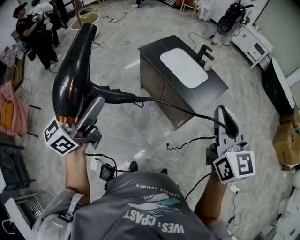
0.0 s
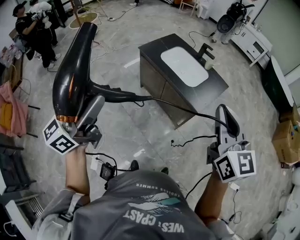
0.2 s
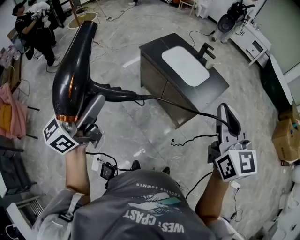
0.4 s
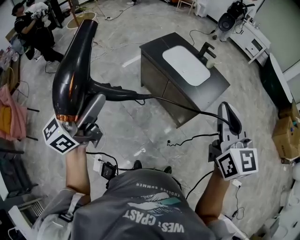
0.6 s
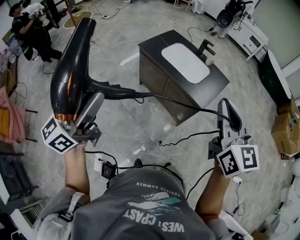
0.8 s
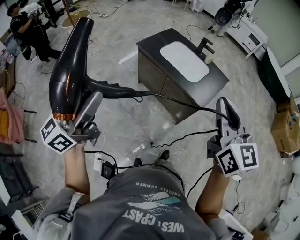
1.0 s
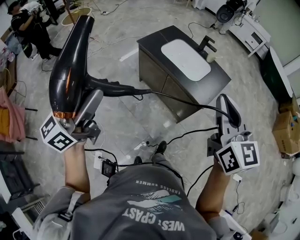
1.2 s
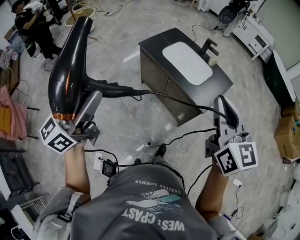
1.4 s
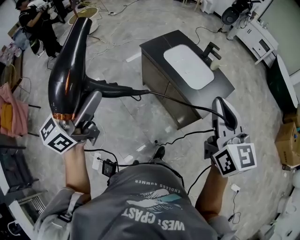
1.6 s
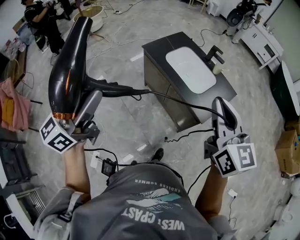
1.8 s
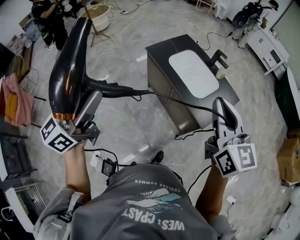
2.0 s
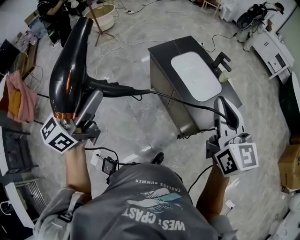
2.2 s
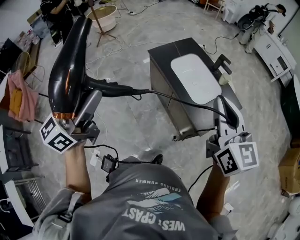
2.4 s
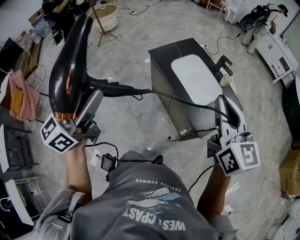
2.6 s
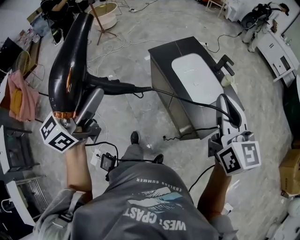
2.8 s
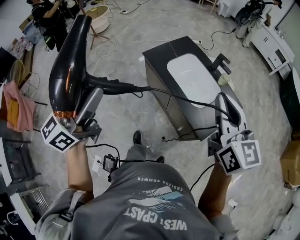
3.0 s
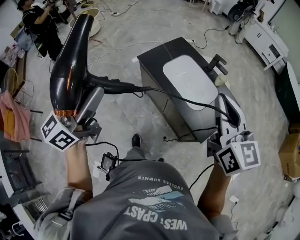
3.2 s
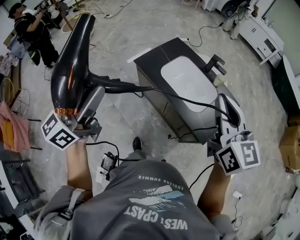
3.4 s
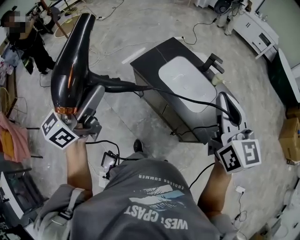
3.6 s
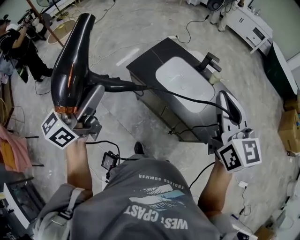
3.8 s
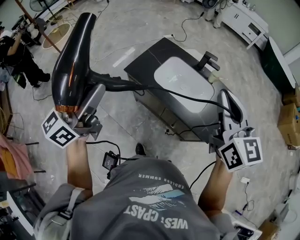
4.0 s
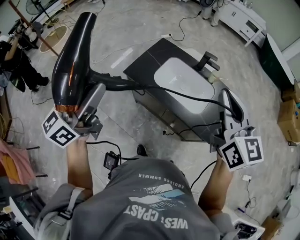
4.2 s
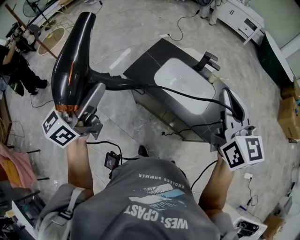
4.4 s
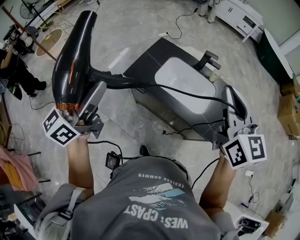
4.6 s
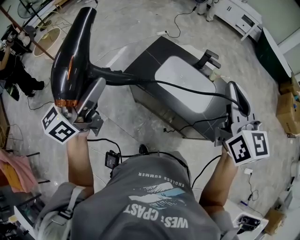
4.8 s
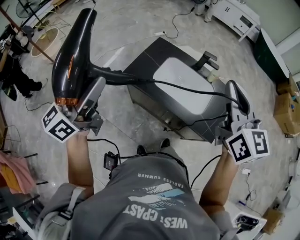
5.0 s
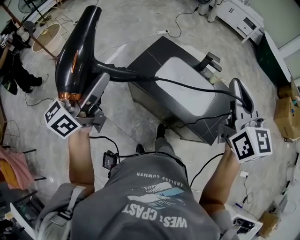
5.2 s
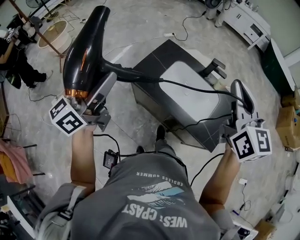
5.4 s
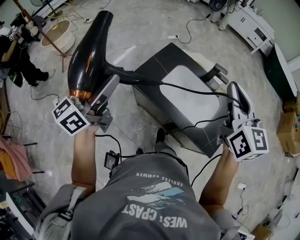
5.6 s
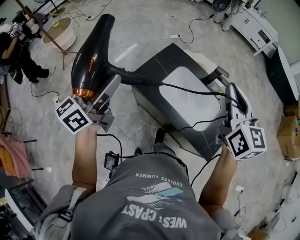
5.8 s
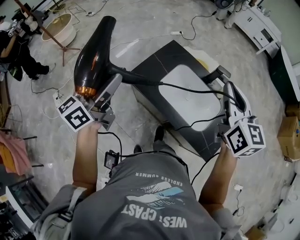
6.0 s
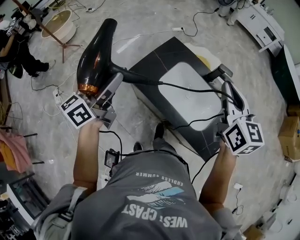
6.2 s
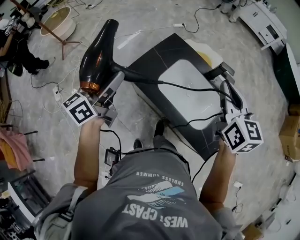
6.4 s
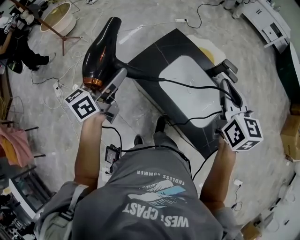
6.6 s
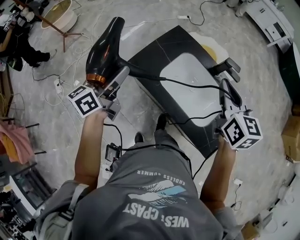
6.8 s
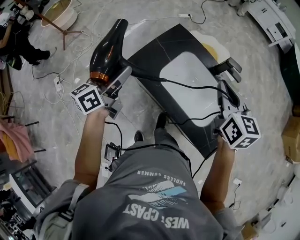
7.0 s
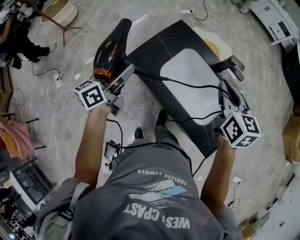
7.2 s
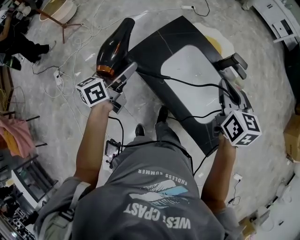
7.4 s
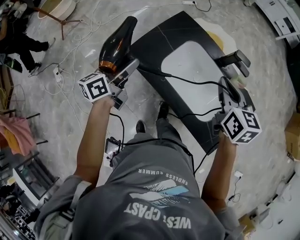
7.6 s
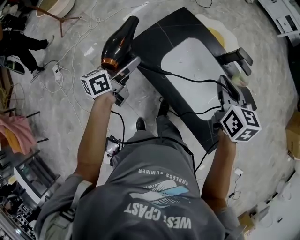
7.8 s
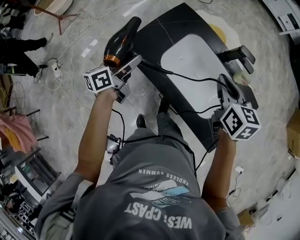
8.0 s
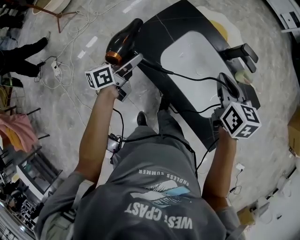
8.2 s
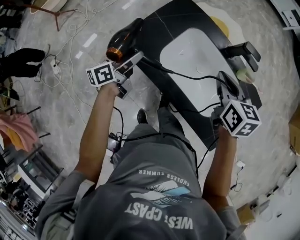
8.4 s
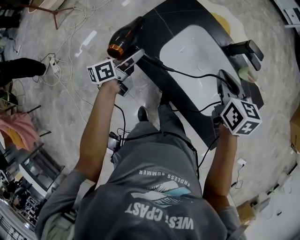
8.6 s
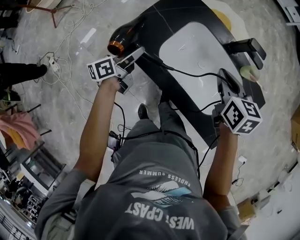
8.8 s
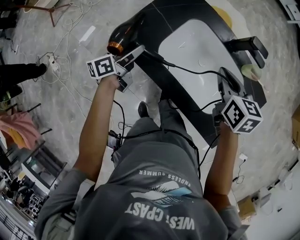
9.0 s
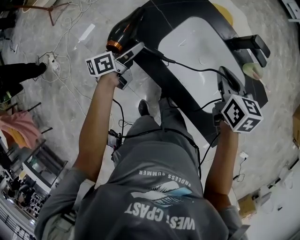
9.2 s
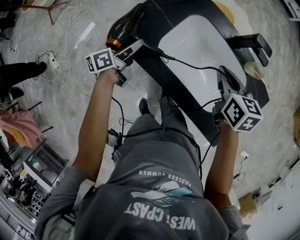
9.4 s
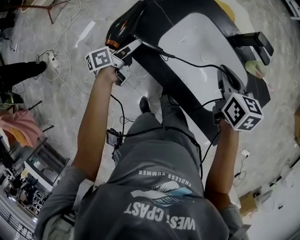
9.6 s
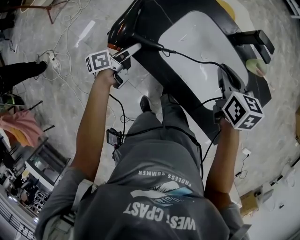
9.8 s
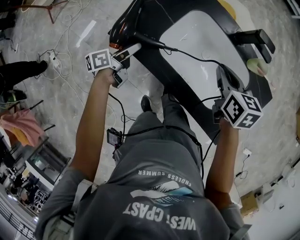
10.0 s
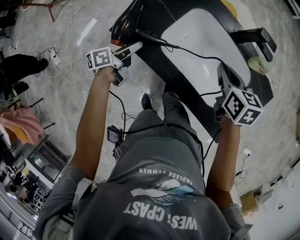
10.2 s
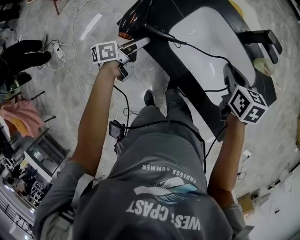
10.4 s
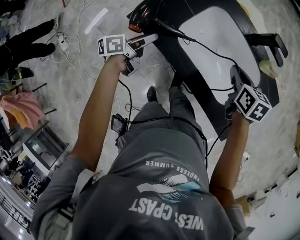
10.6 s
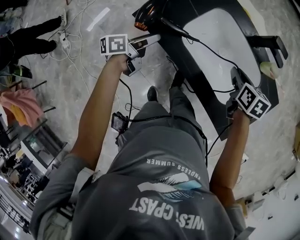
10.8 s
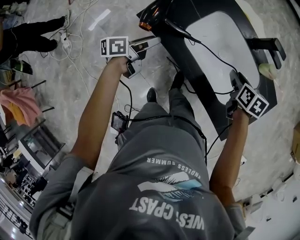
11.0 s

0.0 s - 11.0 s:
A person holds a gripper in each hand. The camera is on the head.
0.0 s - 1.6 s: Both grippers travel together forward, roughly 10 cm.
1.6 s - 3.2 s: Both grippers move forward, about 15 cm.
3.2 s - 4.8 s: The left gripper travels forward and to the left by approximately 20 cm, while the right gripper moves forward and to the left, about 10 cm, and rotates approximately 20 degrees.
4.8 s - 6.2 s: The two grippers go about 20 cm forward and downward.
6.2 s - 7.8 s: The two grippers go roughly 20 cm downward. The left gripper turns by roughly 20 degrees. The right gripper turns by about 20 degrees.
7.8 s - 9.4 s: Both grippers travel together downward, approximately 15 cm.
9.4 s - 11.0 s: The right gripper heads downward, covering some 10 cm, and opens. The left gripper heads backward, covering approximately 10 cm.

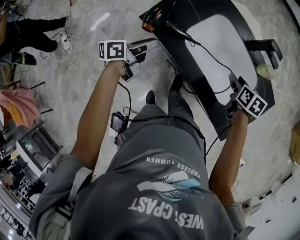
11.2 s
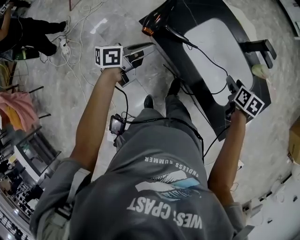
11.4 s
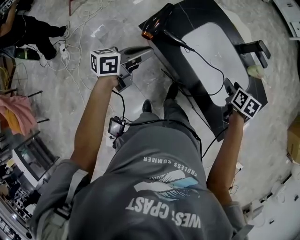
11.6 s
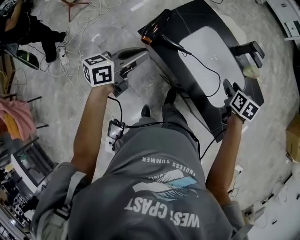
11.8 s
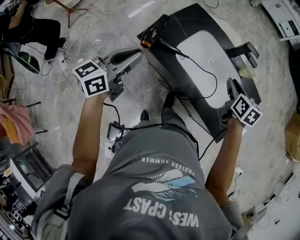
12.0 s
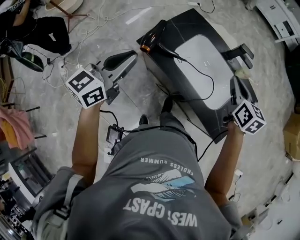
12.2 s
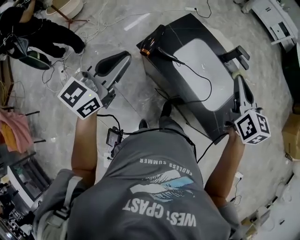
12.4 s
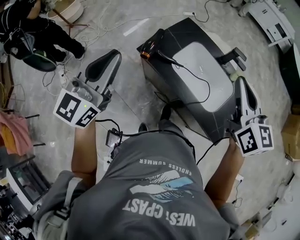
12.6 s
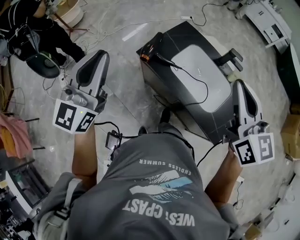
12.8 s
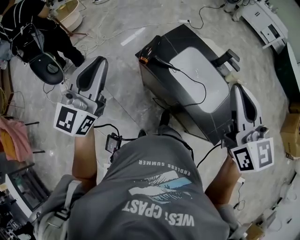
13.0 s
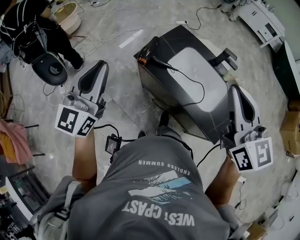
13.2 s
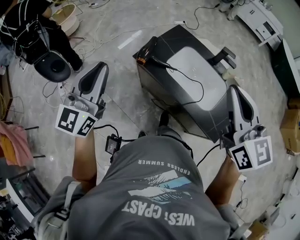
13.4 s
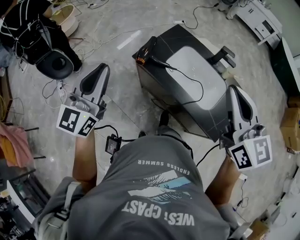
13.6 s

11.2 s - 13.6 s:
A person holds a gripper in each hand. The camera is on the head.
11.2 s - 12.4 s: The two grippers go approximately 30 cm upward. The left gripper rotates around the line of its fingers by about 50 degrees, clockwise from behind. The right gripper points its fingers about 40 degrees further upward, and closes up.
12.4 s - 13.6 s: The left gripper moves backward and upward, about 10 cm. The right gripper travels backward, upward and to the left by approximately 20 cm.

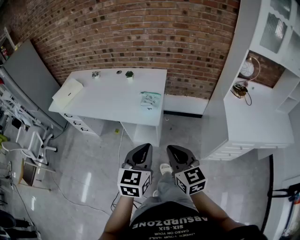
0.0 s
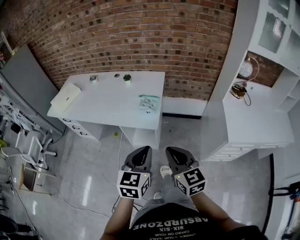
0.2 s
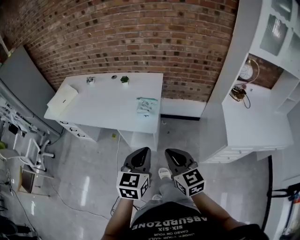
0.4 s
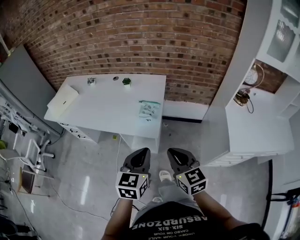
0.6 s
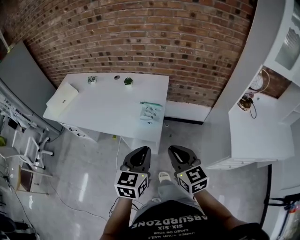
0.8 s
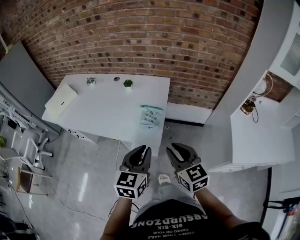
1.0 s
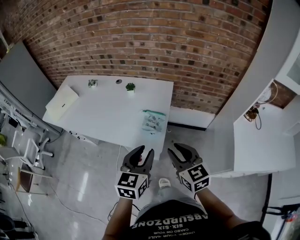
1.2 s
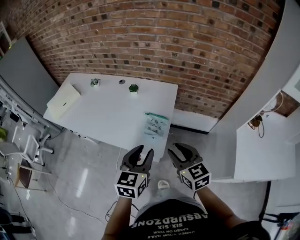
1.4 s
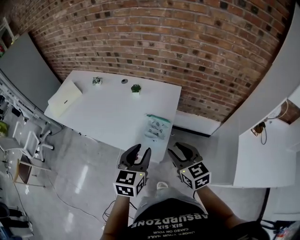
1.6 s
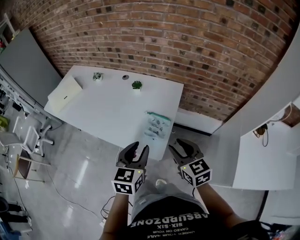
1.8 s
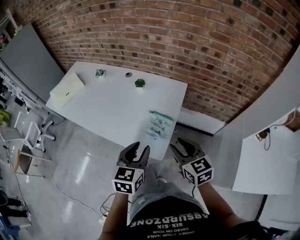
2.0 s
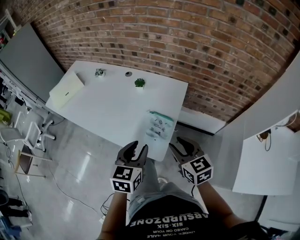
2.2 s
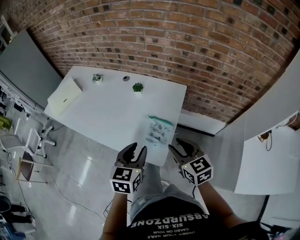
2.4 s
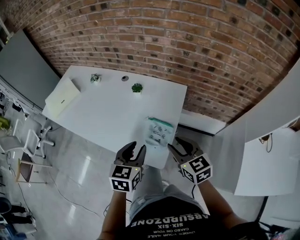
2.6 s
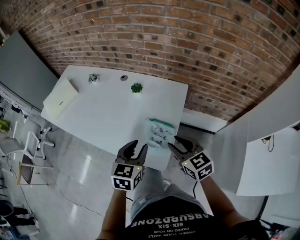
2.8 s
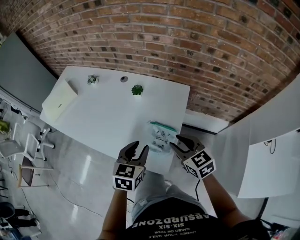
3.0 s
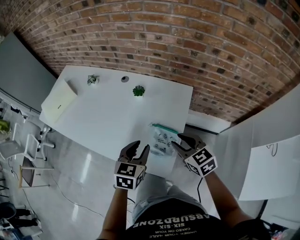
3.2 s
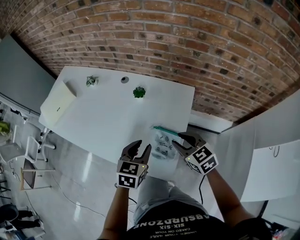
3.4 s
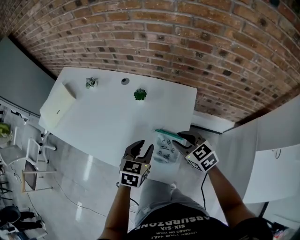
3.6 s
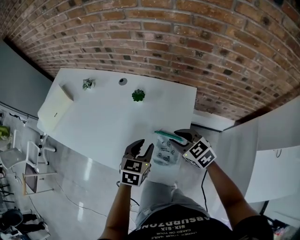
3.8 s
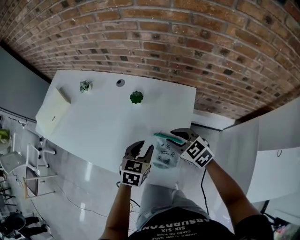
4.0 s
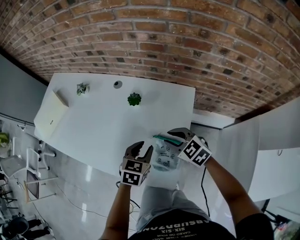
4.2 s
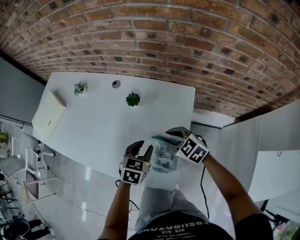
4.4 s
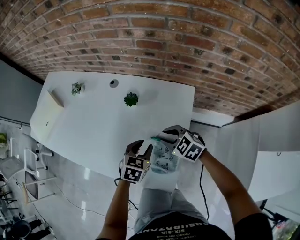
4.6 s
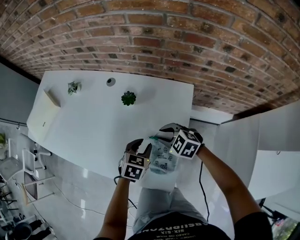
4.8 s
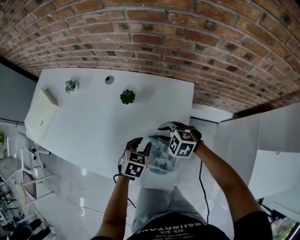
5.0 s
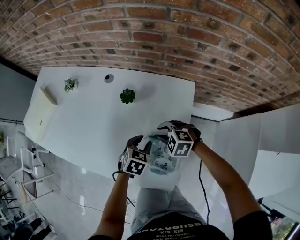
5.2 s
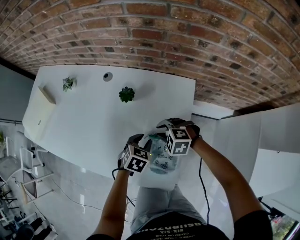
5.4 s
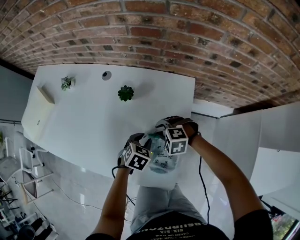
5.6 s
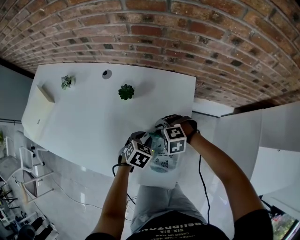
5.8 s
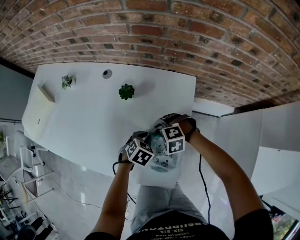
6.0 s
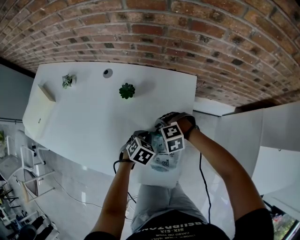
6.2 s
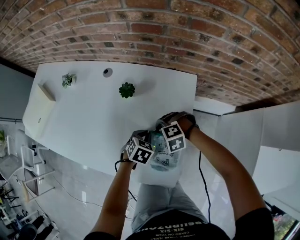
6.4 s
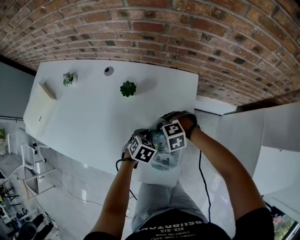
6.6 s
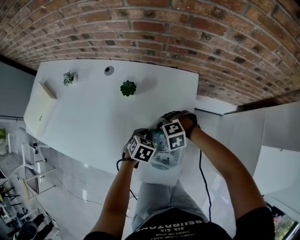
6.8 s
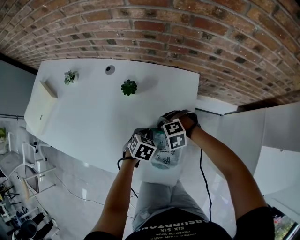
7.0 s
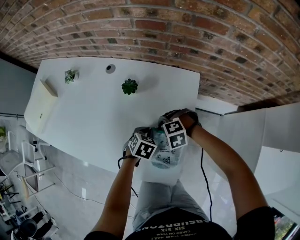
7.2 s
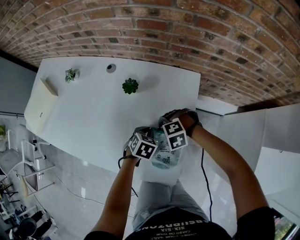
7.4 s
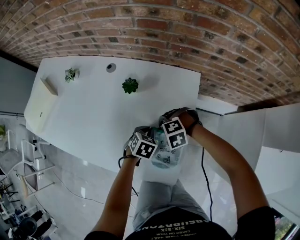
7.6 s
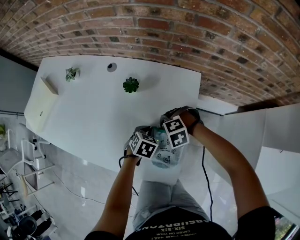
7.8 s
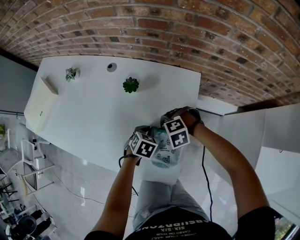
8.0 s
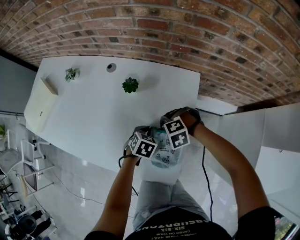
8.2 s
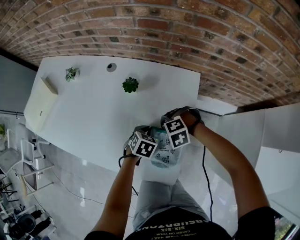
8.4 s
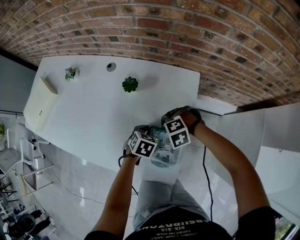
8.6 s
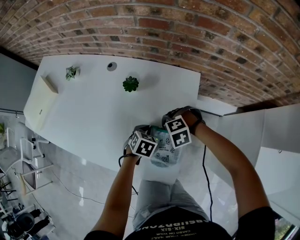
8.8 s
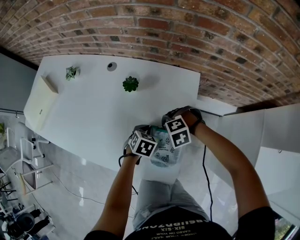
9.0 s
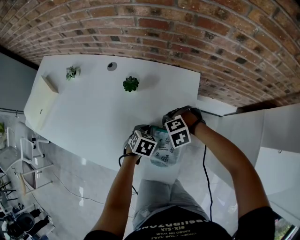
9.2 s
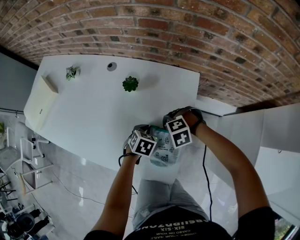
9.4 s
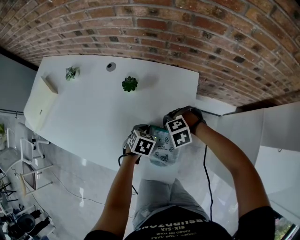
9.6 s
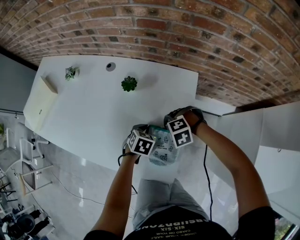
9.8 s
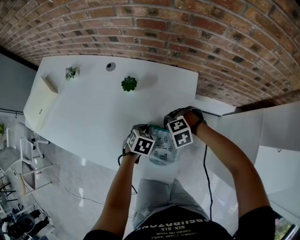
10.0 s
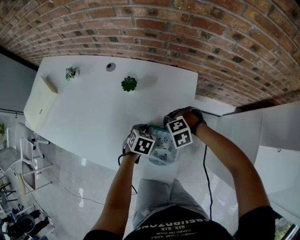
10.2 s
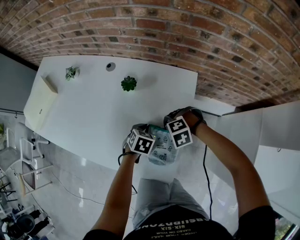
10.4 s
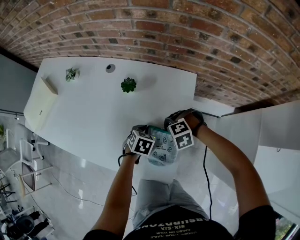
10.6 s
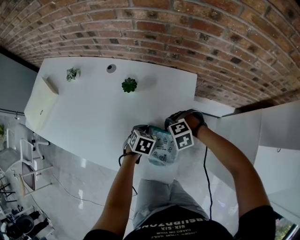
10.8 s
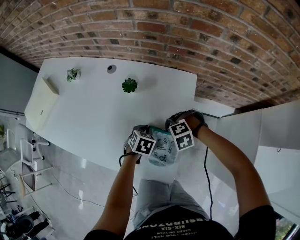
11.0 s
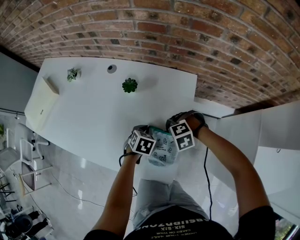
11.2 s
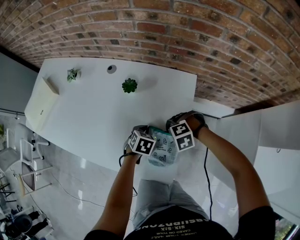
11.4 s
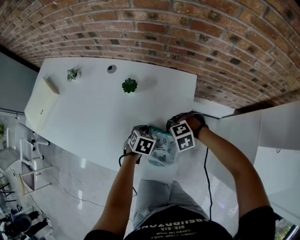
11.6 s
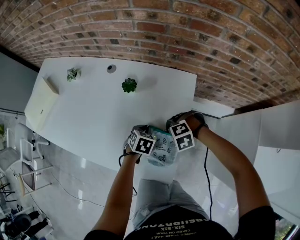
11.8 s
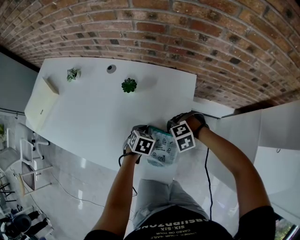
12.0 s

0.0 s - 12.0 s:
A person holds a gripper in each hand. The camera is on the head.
0.0 s - 1.6 s: The two grippers go approximately 30 cm forward. The right gripper opens its fingers, while the left gripper opens.
1.6 s - 3.0 s: The left gripper goes about 15 cm forward and downward; the right gripper heads forward, covering about 15 cm.
3.0 s - 4.4 s: The grippers both shift forward and downward by some 20 cm. The right gripper rotates some 20 degrees.
4.4 s - 6.0 s: The grippers both shift downward by approximately 10 cm. The right gripper swivels about 50 degrees, while the left gripper changes its angle by some 20 degrees.
6.0 s - 10.4 s: The grippers stay close to where they were, moving slightly.
10.4 s - 12.0 s: There are only small adjustments of the grippers.
